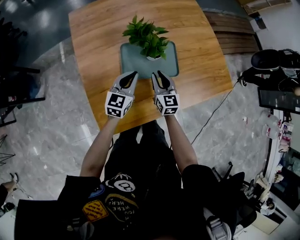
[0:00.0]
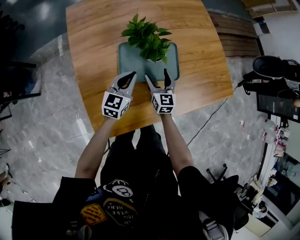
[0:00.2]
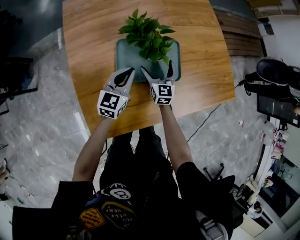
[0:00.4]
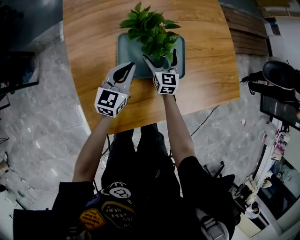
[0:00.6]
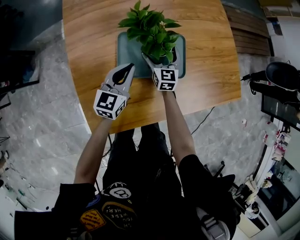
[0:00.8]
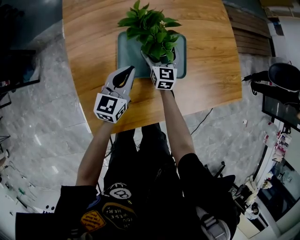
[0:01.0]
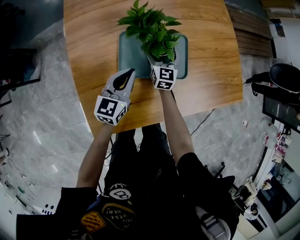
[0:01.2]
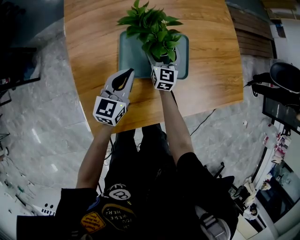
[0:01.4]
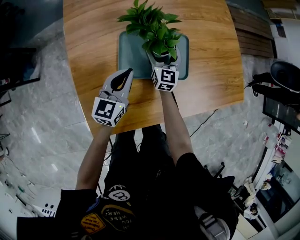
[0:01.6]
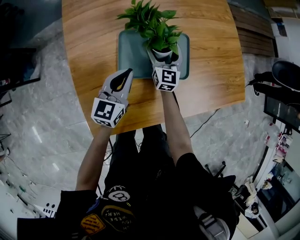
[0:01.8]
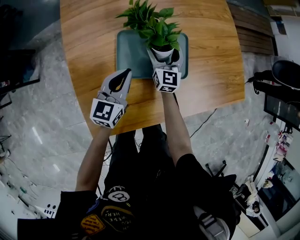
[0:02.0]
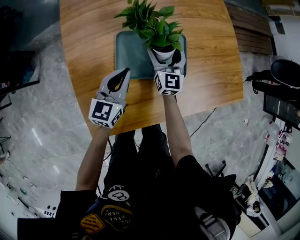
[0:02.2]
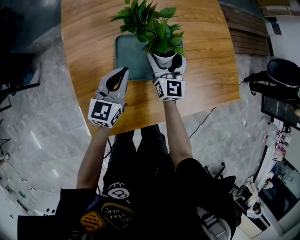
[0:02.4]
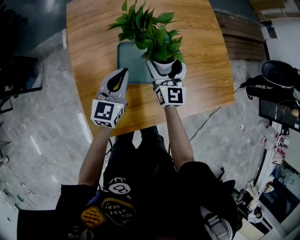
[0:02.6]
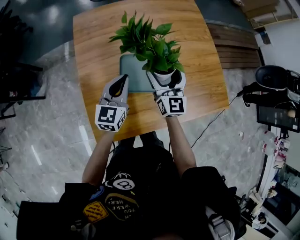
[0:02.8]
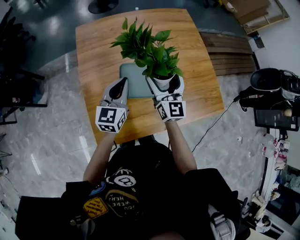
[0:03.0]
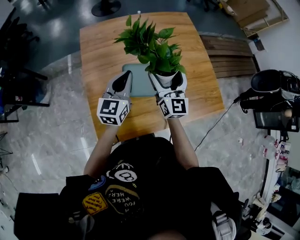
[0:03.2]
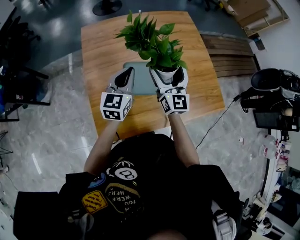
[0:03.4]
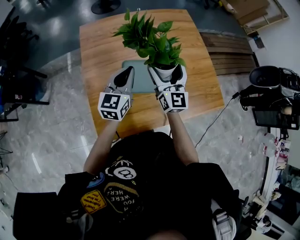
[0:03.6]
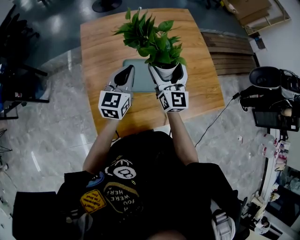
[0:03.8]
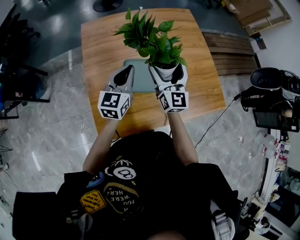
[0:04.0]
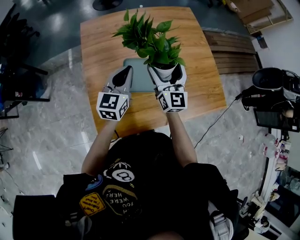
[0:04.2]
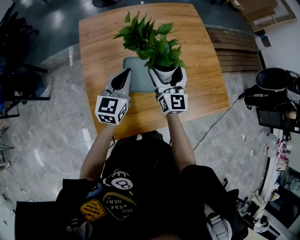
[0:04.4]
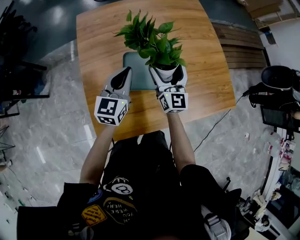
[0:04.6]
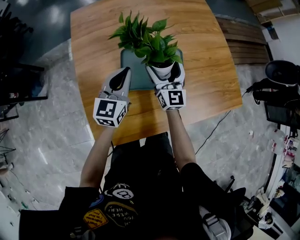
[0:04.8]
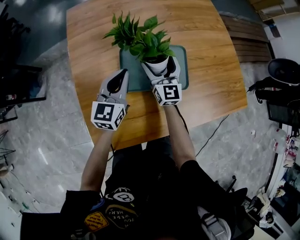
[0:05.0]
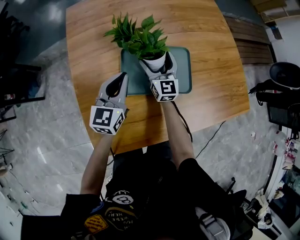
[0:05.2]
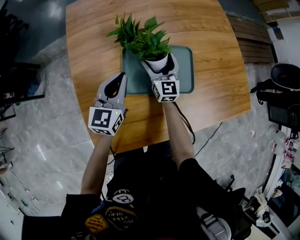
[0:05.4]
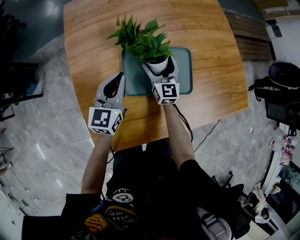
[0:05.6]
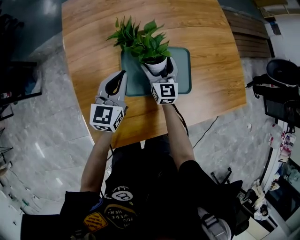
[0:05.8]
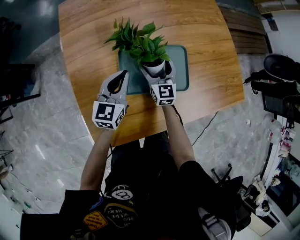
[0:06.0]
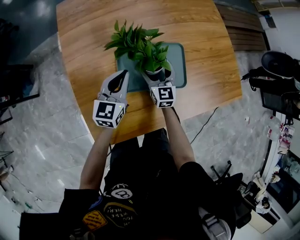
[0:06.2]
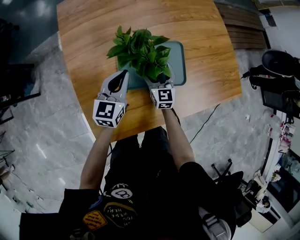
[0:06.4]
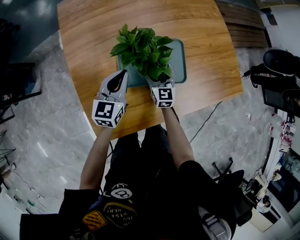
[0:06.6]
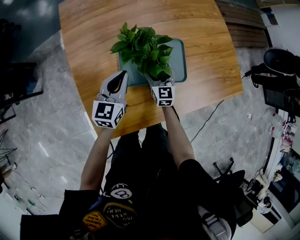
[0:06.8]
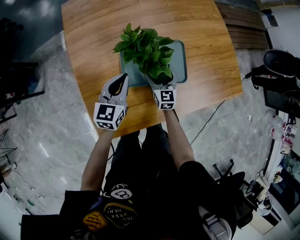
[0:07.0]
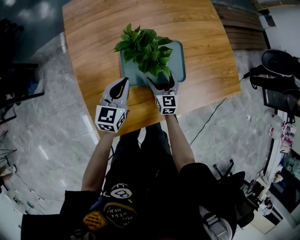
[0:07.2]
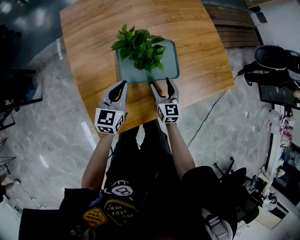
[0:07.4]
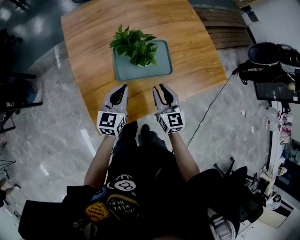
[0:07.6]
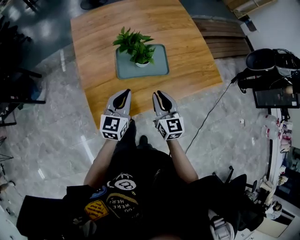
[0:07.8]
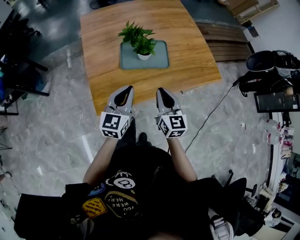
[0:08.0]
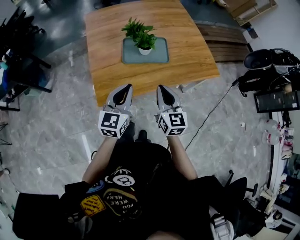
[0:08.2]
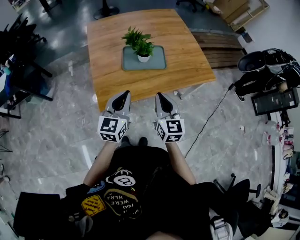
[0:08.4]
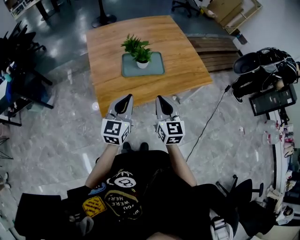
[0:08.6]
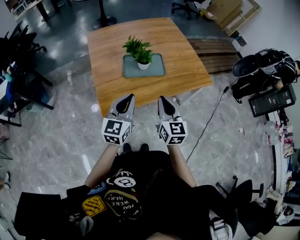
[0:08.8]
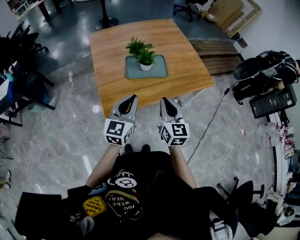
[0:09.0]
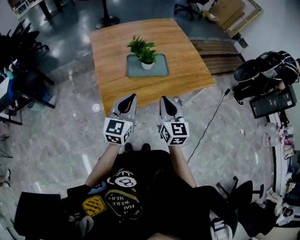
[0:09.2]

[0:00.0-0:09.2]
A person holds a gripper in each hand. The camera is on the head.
0.0 to 1.6 s: The left gripper shifts by approximately 5 cm, while the right gripper goes about 15 cm forward and downward, and opens.
1.6 to 3.0 s: The left gripper travels upward by about 20 cm, while the right gripper is displaced upward by approximately 30 cm.
3.0 to 4.6 s: The right gripper shifts about 10 cm downward, while the left gripper ends up roughly 5 cm from where it was.
4.6 to 6.2 s: The left gripper goes roughly 15 cm downward, while the right gripper travels downward by approximately 20 cm, and swivels approximately 20 degrees.
6.2 to 7.6 s: The left gripper goes some 15 cm backward and upward. Meanwhile the right gripper moves backward and upward, roughly 25 cm, and closes.
7.6 to 9.2 s: The two grippers go approximately 30 cm backward and upward.

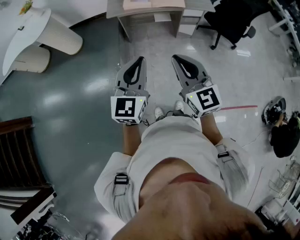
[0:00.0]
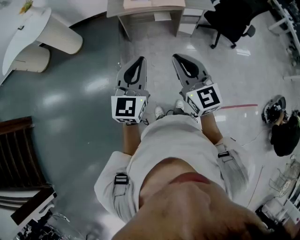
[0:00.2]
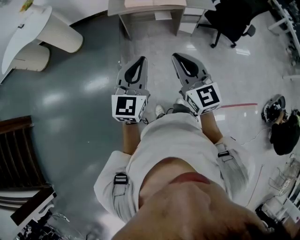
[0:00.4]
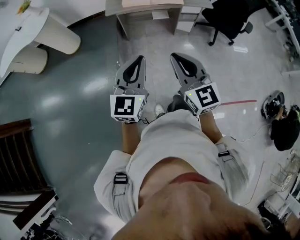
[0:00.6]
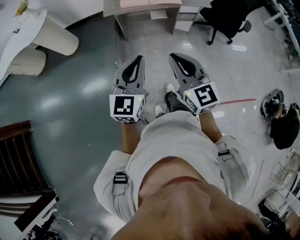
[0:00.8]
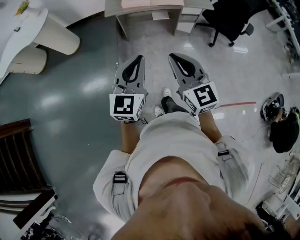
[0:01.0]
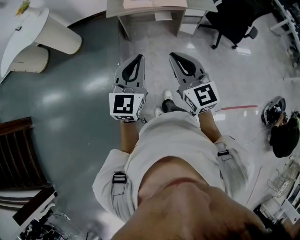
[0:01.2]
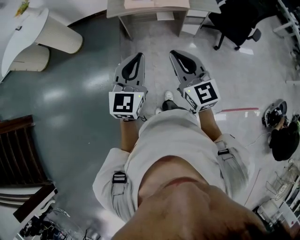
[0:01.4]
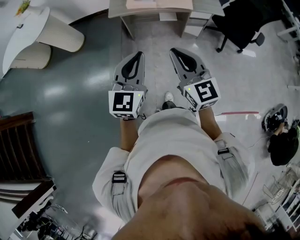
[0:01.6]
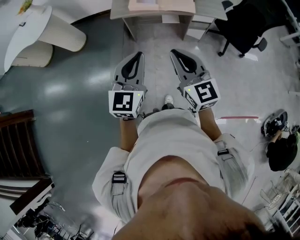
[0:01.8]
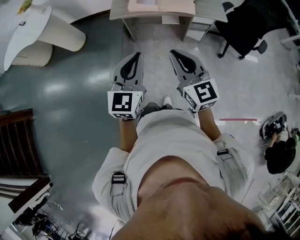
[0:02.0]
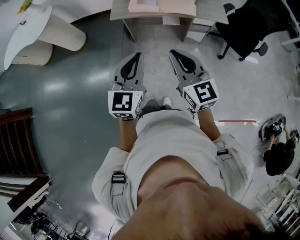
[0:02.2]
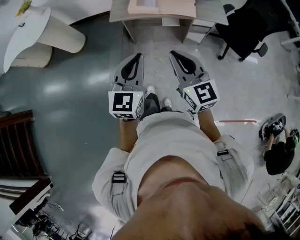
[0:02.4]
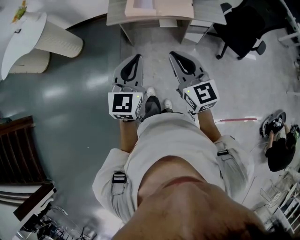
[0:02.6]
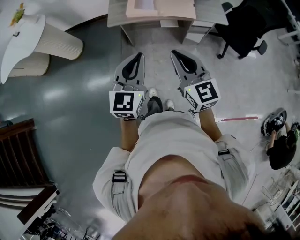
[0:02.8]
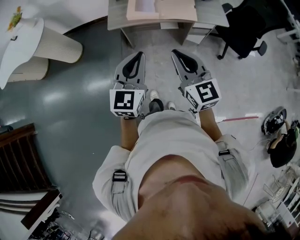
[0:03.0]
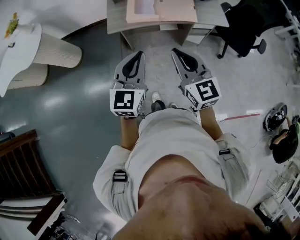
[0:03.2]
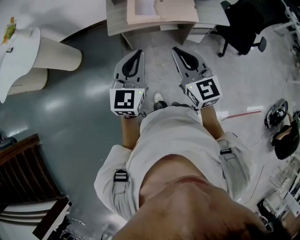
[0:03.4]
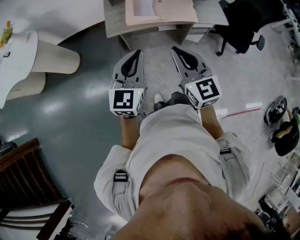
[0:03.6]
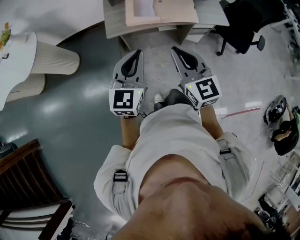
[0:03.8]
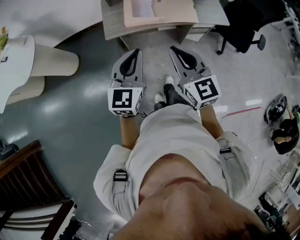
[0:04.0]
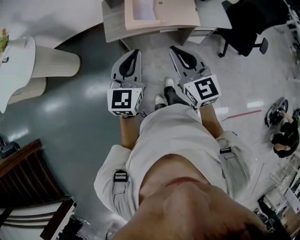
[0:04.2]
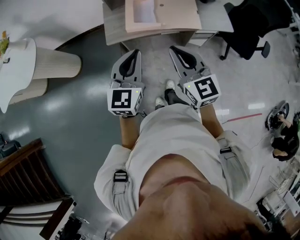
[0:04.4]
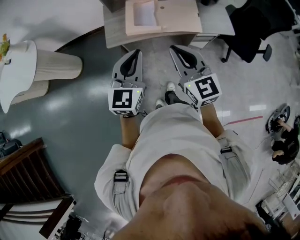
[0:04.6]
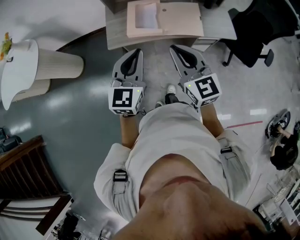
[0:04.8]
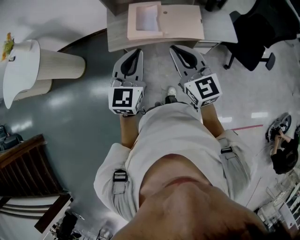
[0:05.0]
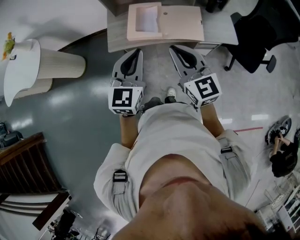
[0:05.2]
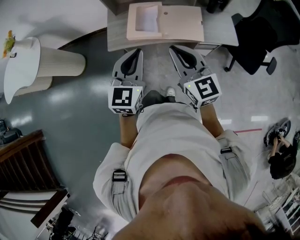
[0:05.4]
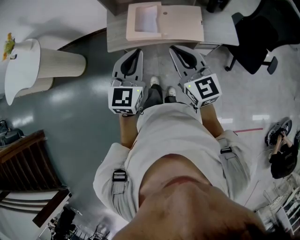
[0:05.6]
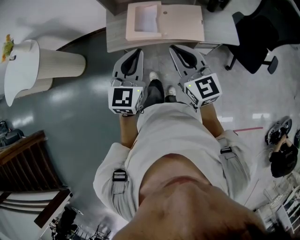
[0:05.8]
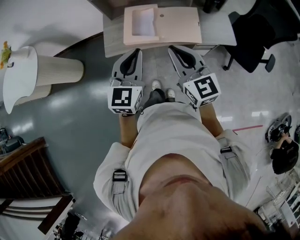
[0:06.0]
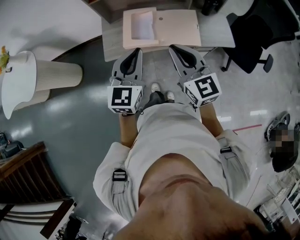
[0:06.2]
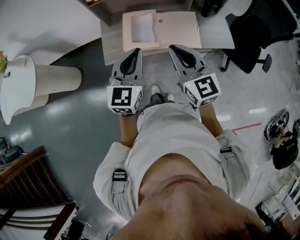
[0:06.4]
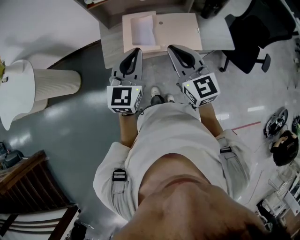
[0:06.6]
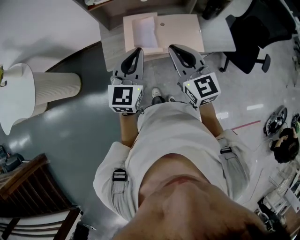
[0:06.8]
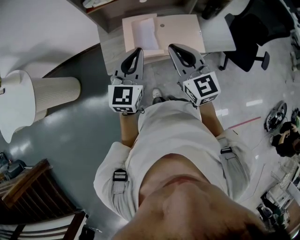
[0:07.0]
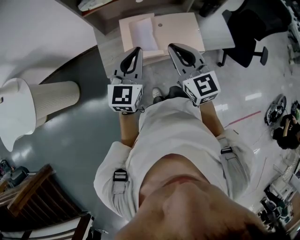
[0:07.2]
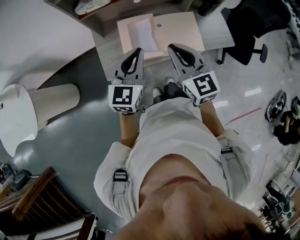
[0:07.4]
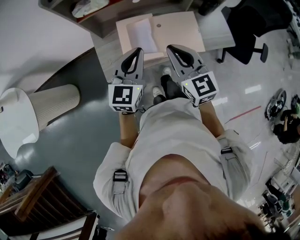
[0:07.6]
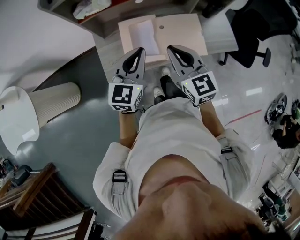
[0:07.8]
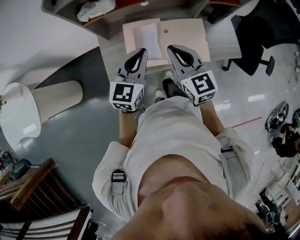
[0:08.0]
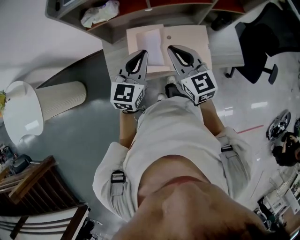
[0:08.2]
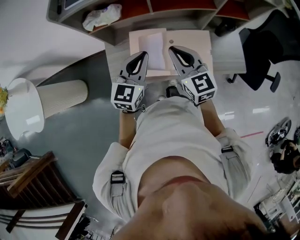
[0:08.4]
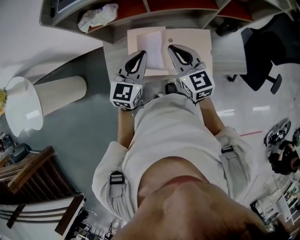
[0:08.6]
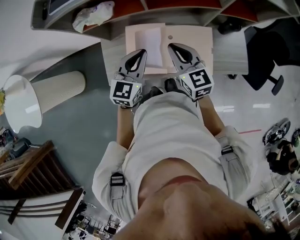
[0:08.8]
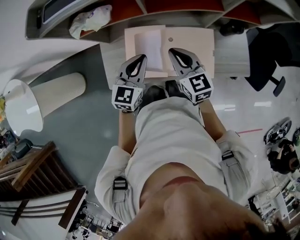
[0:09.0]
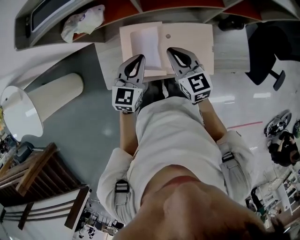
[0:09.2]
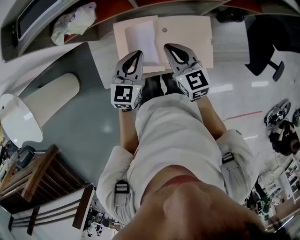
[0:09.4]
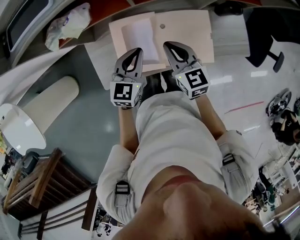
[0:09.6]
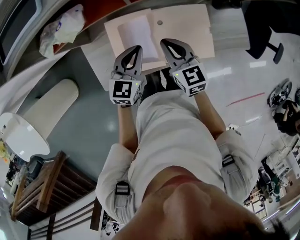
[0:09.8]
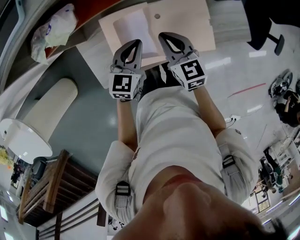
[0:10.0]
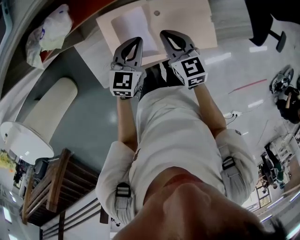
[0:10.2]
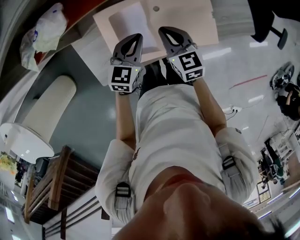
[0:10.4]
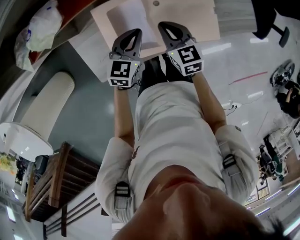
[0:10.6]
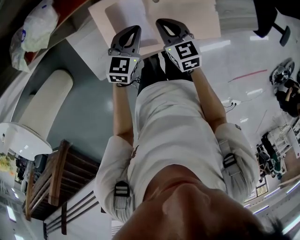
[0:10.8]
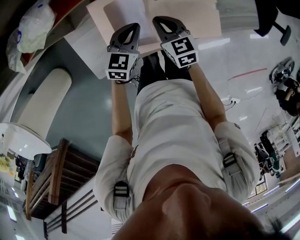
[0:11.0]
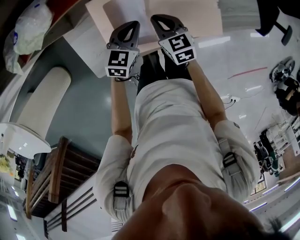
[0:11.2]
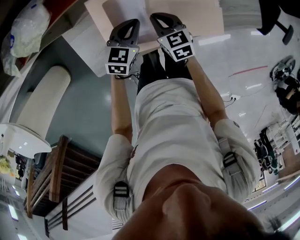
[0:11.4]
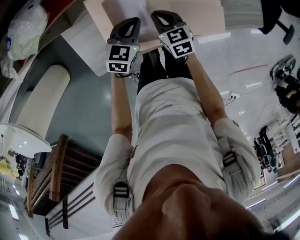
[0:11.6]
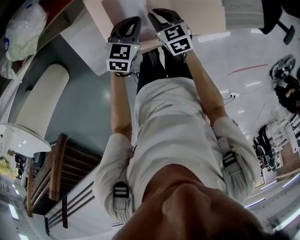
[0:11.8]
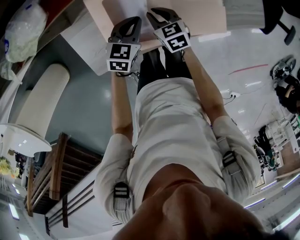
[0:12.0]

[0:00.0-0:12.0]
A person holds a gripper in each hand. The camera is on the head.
0.0 to 1.6 s: The grippers both shift forward by about 10 cm.
1.6 to 3.0 s: The grippers both shift forward by some 15 cm.
3.0 to 4.4 s: The grippers both shift forward by about 15 cm.
4.4 to 6.0 s: Both grippers move forward and to the right, roughly 10 cm.
6.0 to 7.6 s: The right gripper travels forward and to the left by about 20 cm. The left gripper heads forward, covering approximately 20 cm.
7.6 to 9.0 s: The grippers both shift forward and downward by approximately 20 cm.
9.0 to 10.4 s: Both grippers move downward, about 15 cm.
10.4 to 12.0 s: Both grippers travel together downward, roughly 10 cm.

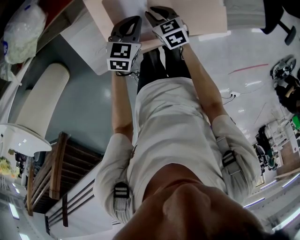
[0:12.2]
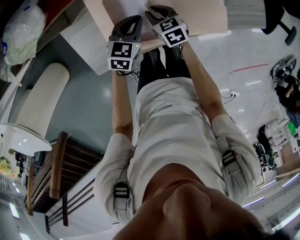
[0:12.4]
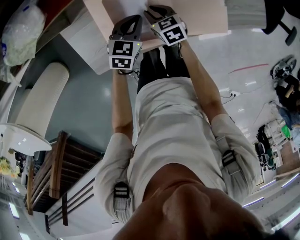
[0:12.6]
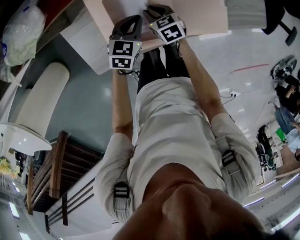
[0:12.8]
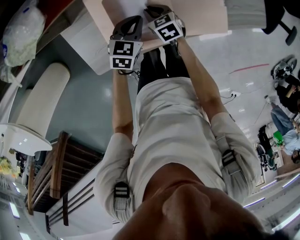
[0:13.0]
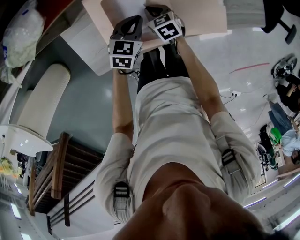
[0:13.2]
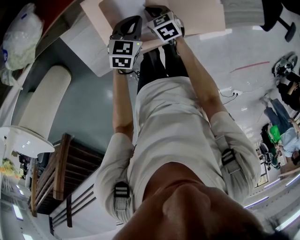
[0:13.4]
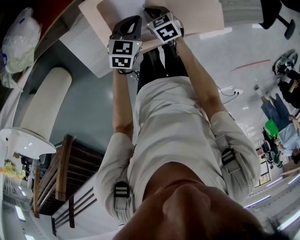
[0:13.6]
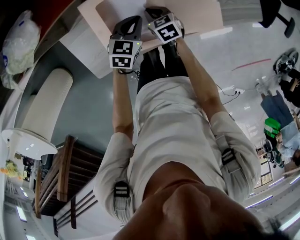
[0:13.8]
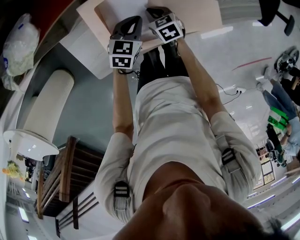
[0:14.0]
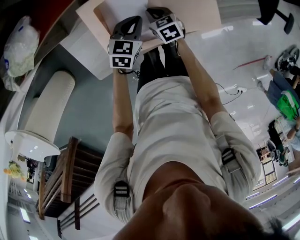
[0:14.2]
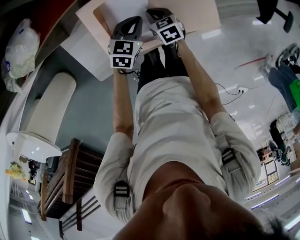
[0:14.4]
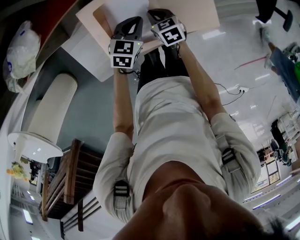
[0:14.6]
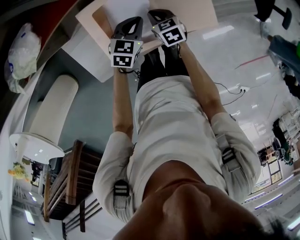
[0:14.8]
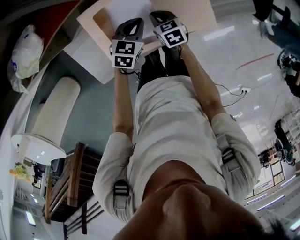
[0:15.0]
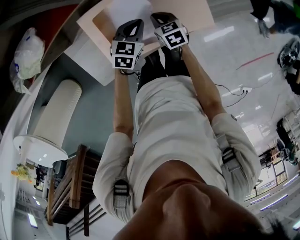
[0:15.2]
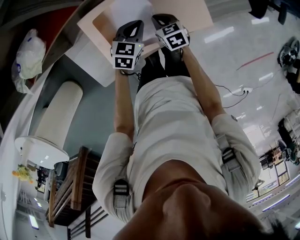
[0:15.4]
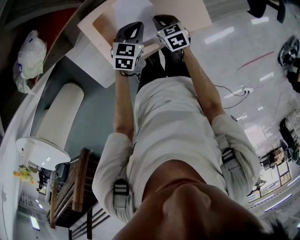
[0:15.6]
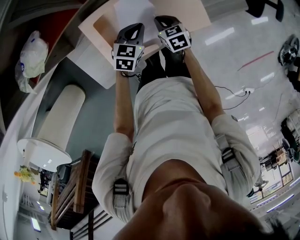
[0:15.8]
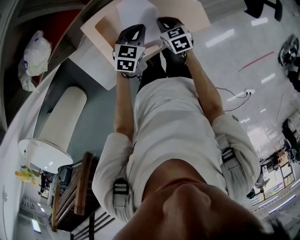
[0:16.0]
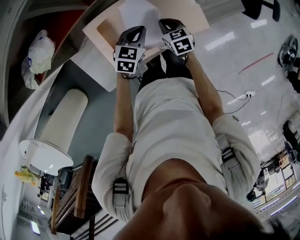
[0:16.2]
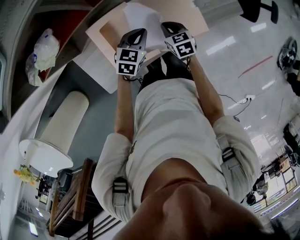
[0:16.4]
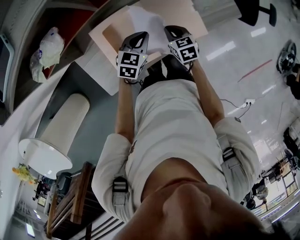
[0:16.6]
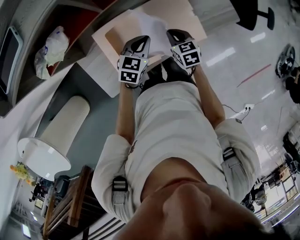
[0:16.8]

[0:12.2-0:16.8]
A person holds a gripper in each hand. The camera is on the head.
12.2 to 13.8 s: The grippers make only small movements.
13.8 to 15.2 s: The right gripper moves to the right, roughly 5 cm.
15.2 to 16.8 s: The left gripper goes about 10 cm upward, while the right gripper is displaced upward and to the right by some 10 cm.
